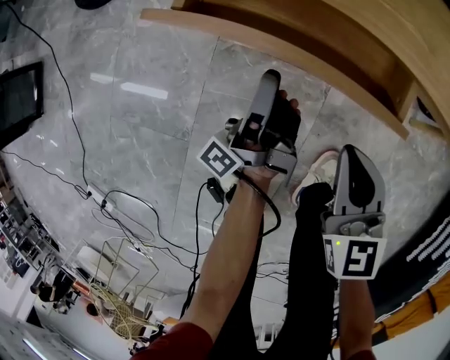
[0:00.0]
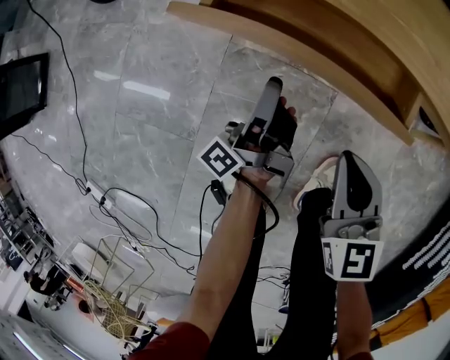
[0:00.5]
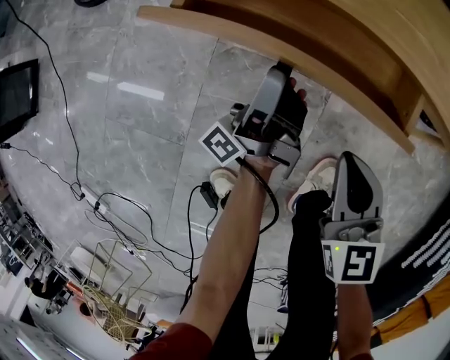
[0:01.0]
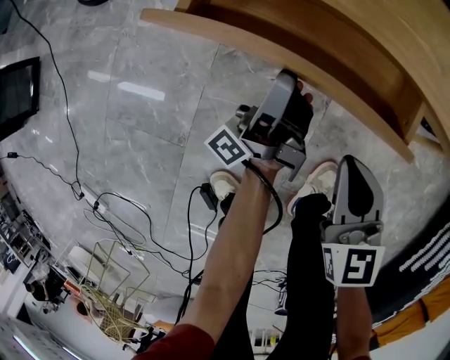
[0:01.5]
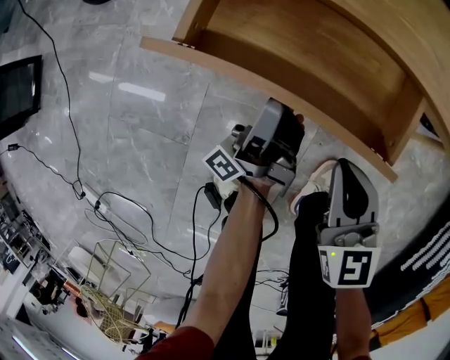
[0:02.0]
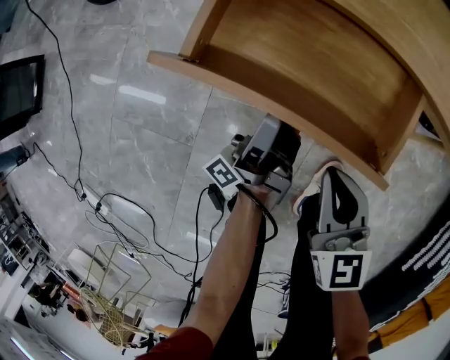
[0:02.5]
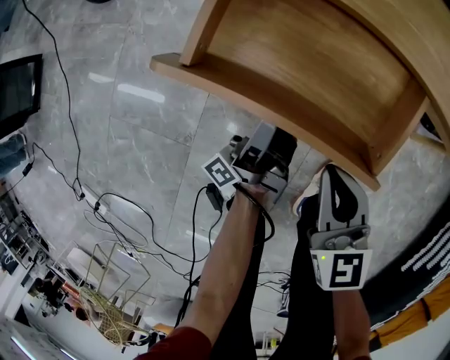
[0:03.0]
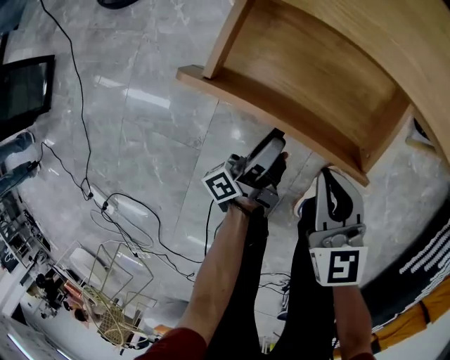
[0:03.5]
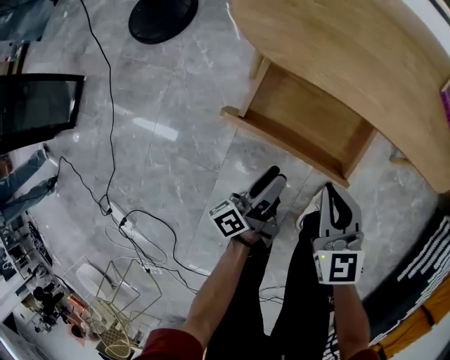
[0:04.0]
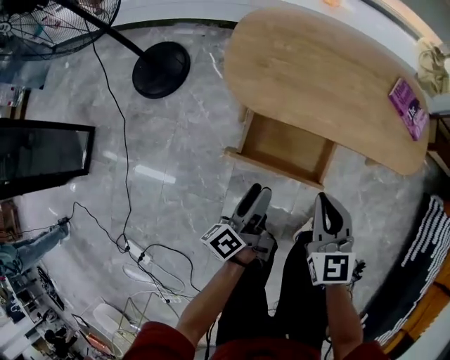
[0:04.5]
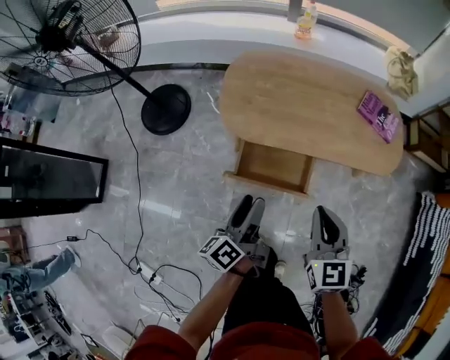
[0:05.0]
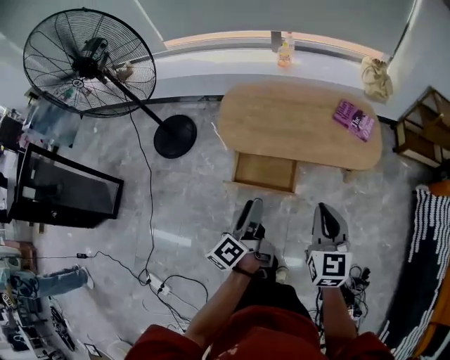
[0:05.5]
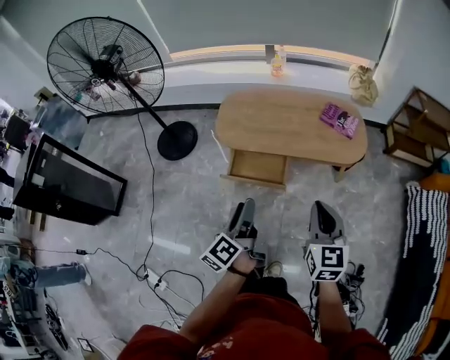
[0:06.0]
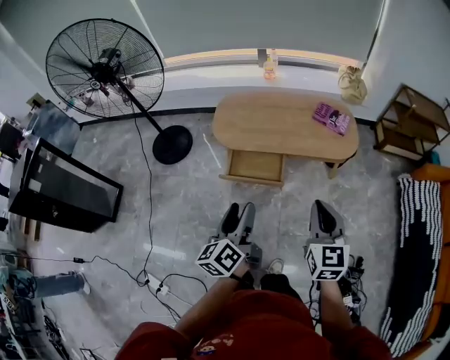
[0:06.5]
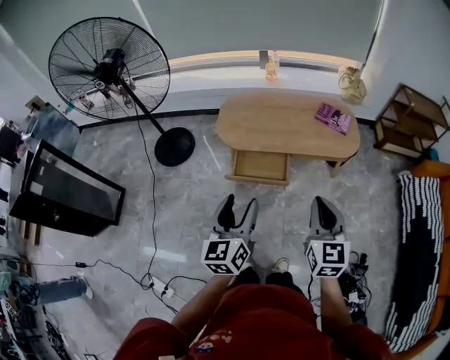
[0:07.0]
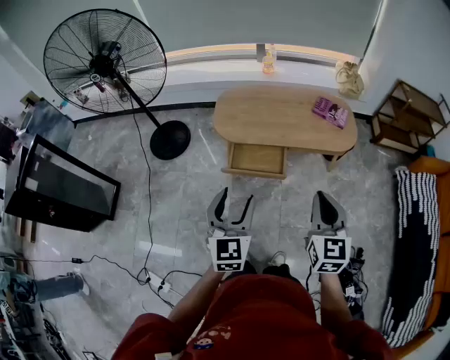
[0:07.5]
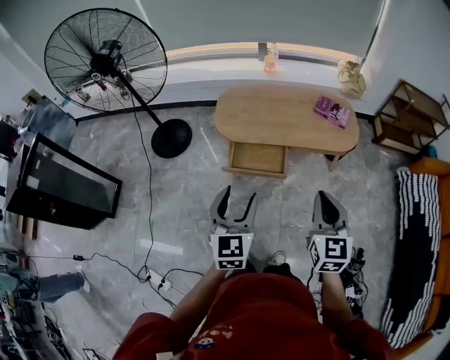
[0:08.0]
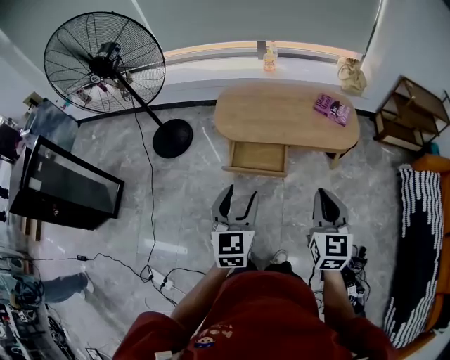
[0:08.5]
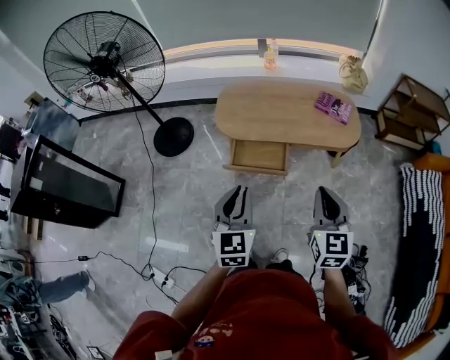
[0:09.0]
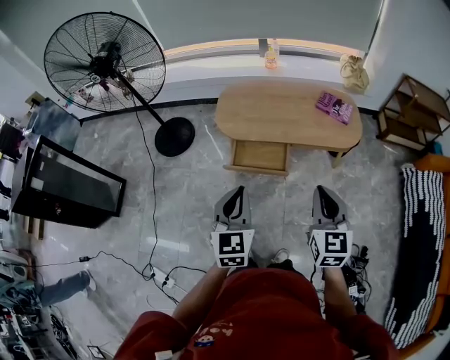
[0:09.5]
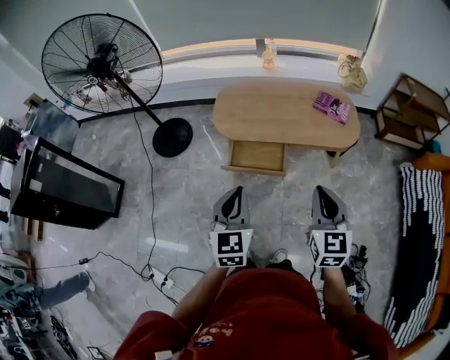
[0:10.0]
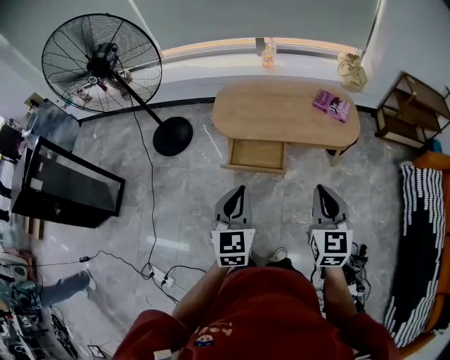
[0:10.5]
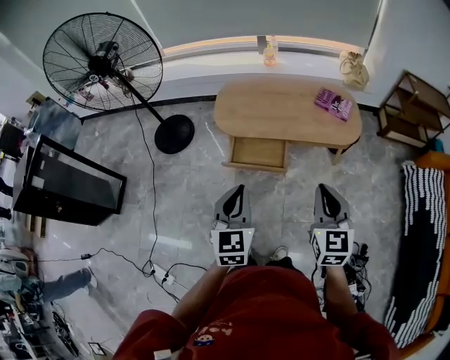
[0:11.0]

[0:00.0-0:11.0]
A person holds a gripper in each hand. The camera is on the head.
0:00.0 to 0:02.0: The left gripper opens its fingers.
0:02.0 to 0:03.5: The left gripper moves backward, approximately 5 cm, and turns by some 20 degrees, while the right gripper ends up some 5 cm from where it was.
0:03.5 to 0:05.5: Both grippers travel together upward, about 60 cm. The right gripper turns by some 30 degrees; the left gripper swivels roughly 30 degrees.
0:05.5 to 0:07.5: Both grippers travel together backward and upward, about 20 cm. The left gripper rotates around the line of its fingers by roughly 80 degrees, clockwise from behind.
0:07.5 to 0:09.0: The left gripper closes its fingers.
0:09.0 to 0:11.0: There are only small adjustments of the grippers.

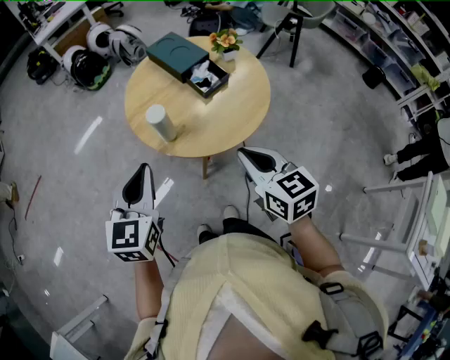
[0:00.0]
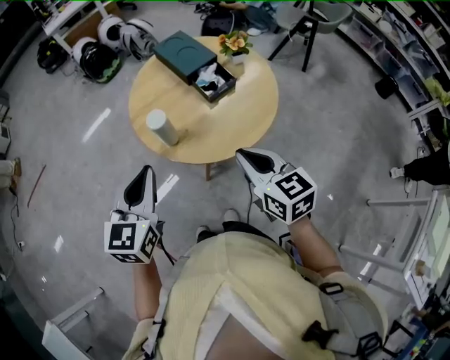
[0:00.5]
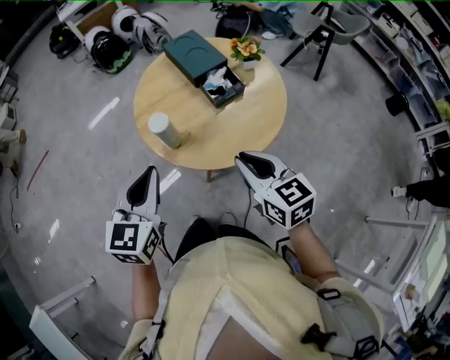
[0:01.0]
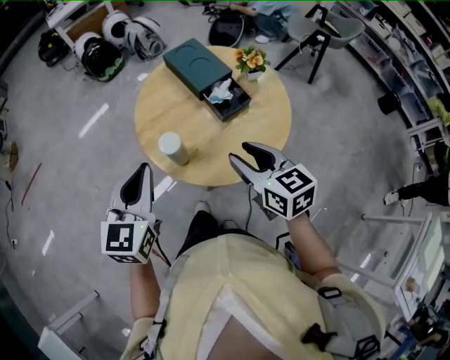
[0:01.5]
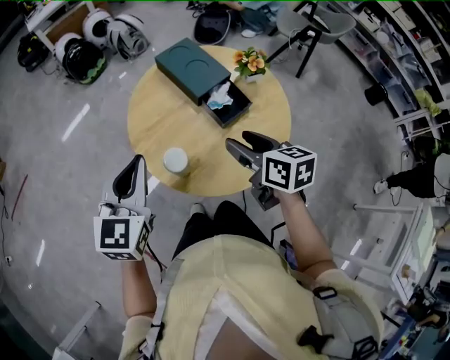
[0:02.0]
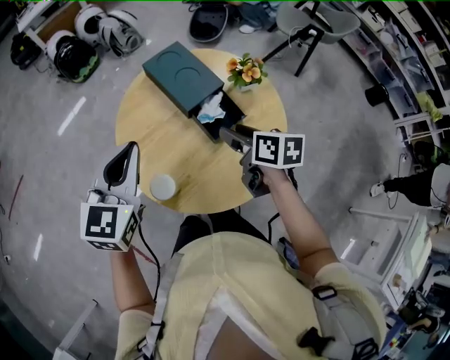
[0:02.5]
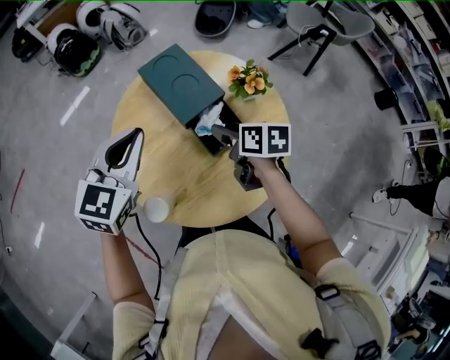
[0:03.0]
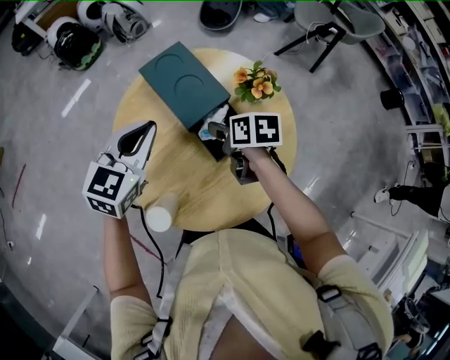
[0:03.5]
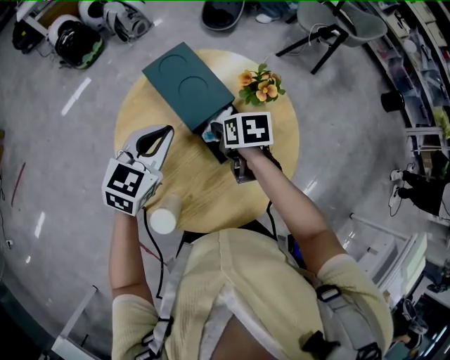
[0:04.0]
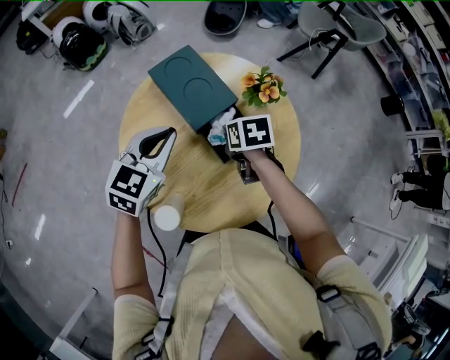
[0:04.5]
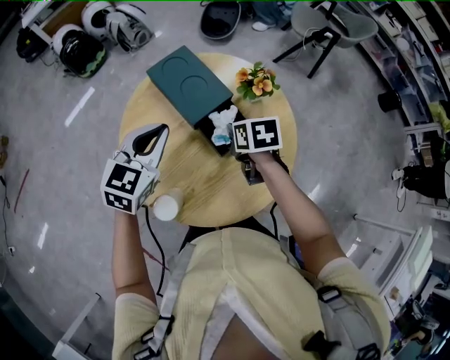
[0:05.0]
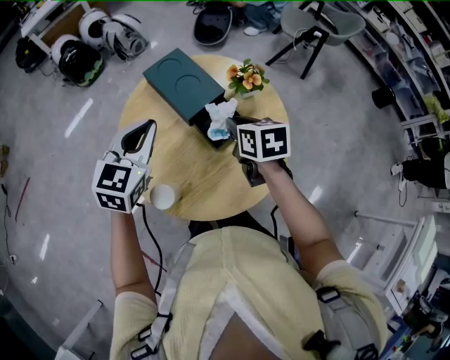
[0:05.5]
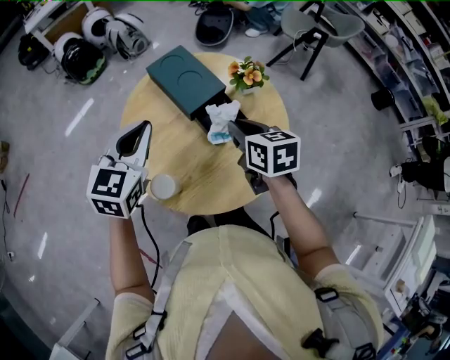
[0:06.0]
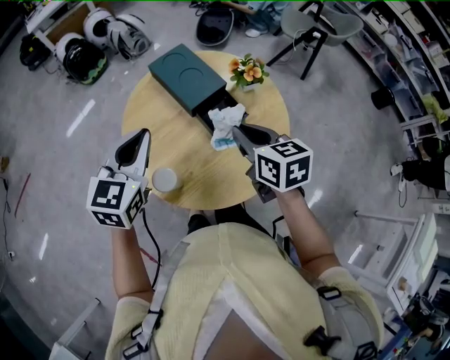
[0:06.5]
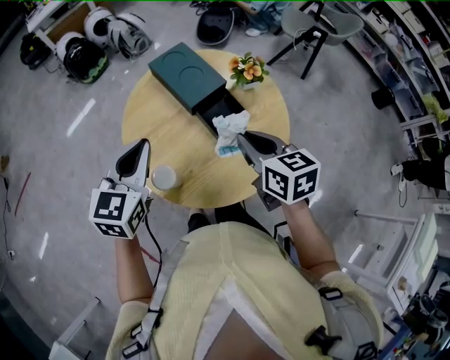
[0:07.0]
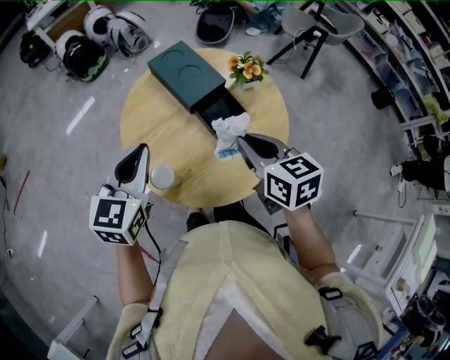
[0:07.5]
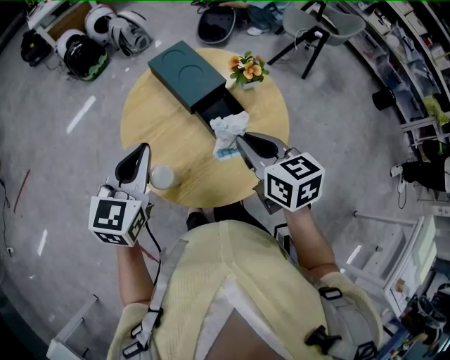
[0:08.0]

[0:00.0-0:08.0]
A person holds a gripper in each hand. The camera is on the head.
0:00.0 to 0:02.0: Both grippers move forward, roughly 20 cm. The right gripper opens up.
0:02.0 to 0:04.0: The left gripper travels forward, to the right and downward by some 25 cm, and swivels about 20 degrees. Meanwhile the right gripper is displaced forward and downward by roughly 25 cm, and rotates some 30 degrees.
0:04.0 to 0:06.0: The right gripper travels upward and backward by roughly 15 cm, swivels roughly 20 degrees, and closes, while the left gripper heads upward, backward and to the left, covering approximately 10 cm.
0:06.0 to 0:08.0: The left gripper is displaced backward by approximately 10 cm. The right gripper travels backward and upward by roughly 10 cm.

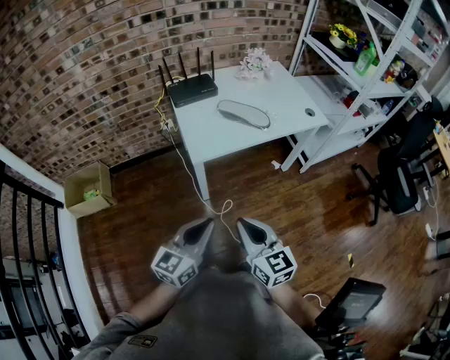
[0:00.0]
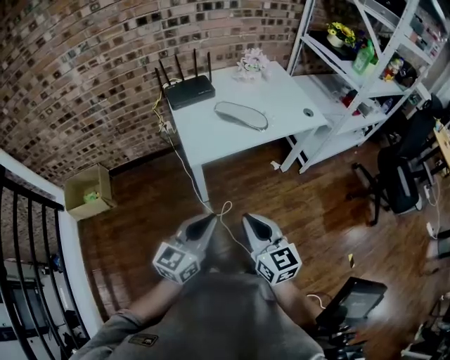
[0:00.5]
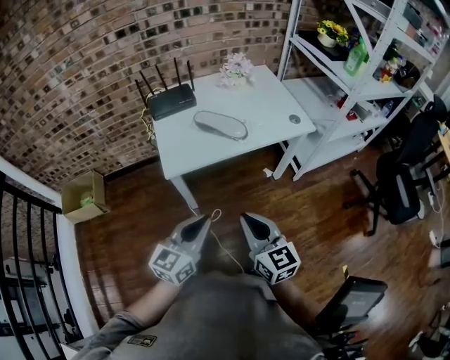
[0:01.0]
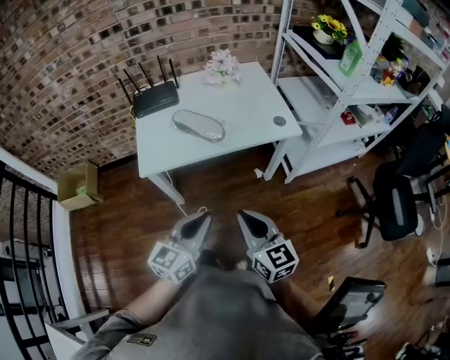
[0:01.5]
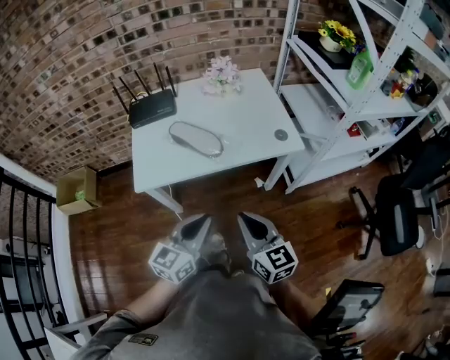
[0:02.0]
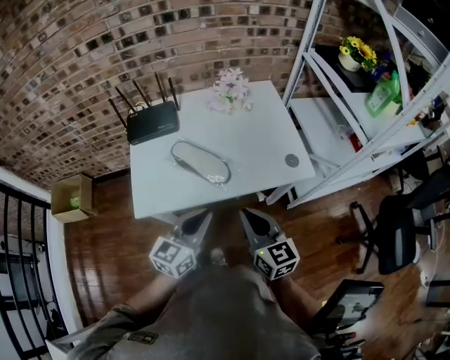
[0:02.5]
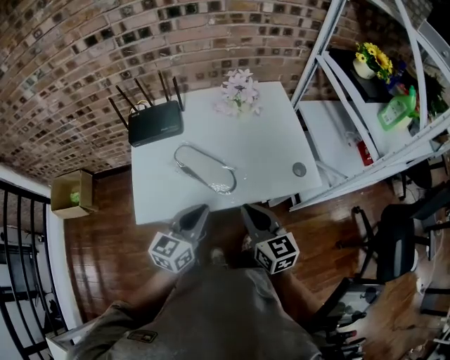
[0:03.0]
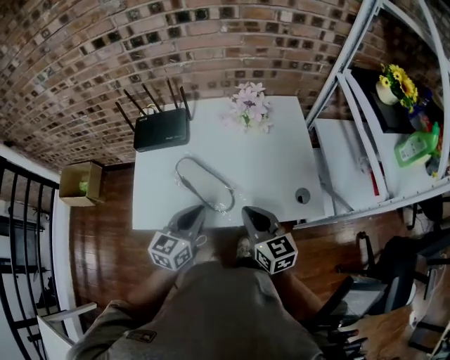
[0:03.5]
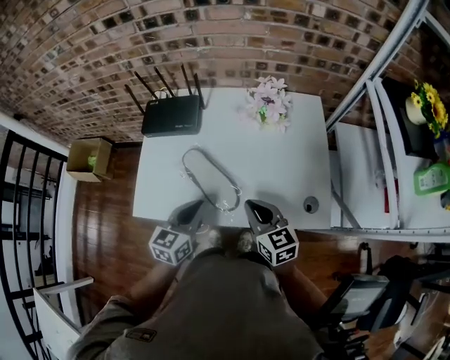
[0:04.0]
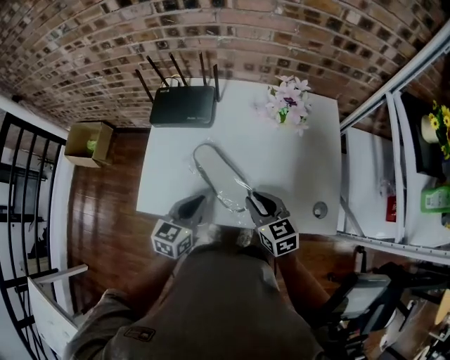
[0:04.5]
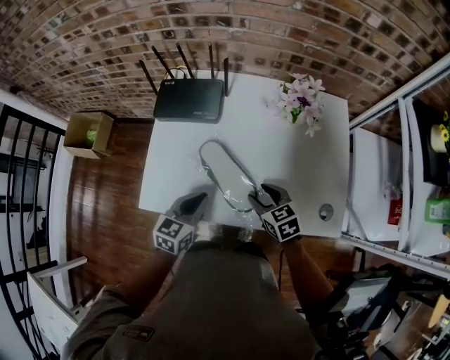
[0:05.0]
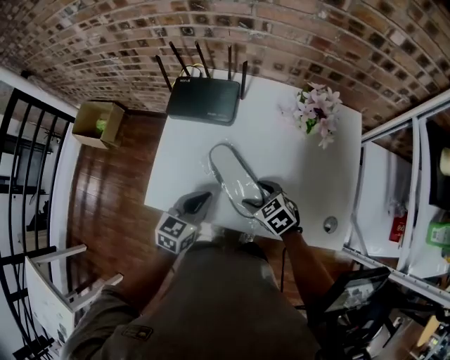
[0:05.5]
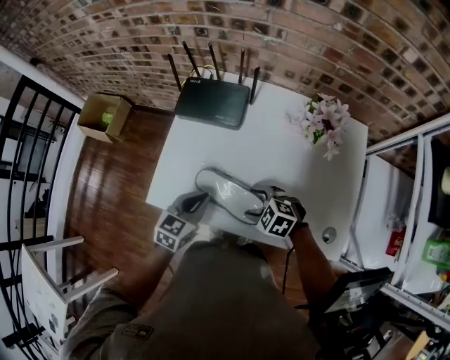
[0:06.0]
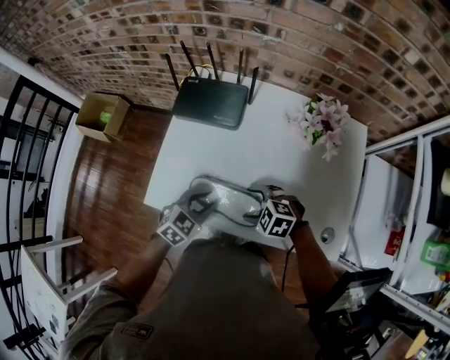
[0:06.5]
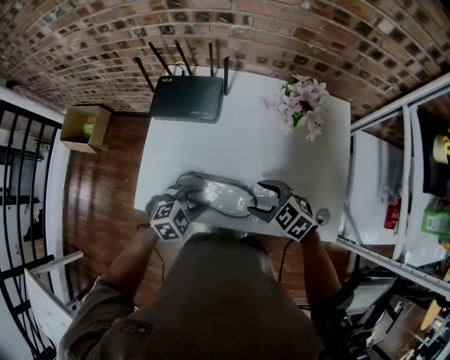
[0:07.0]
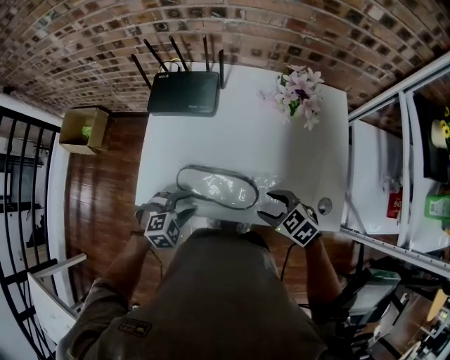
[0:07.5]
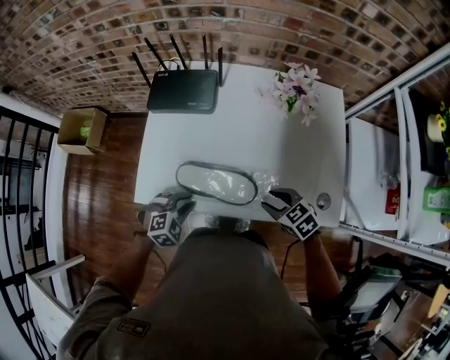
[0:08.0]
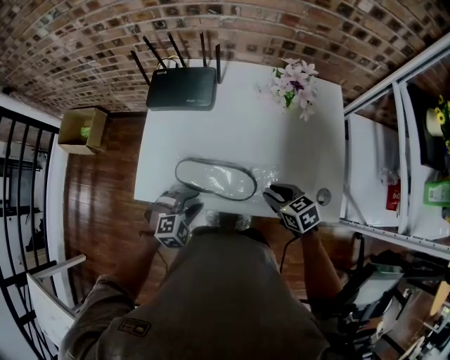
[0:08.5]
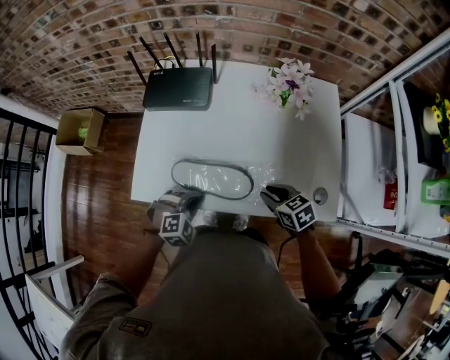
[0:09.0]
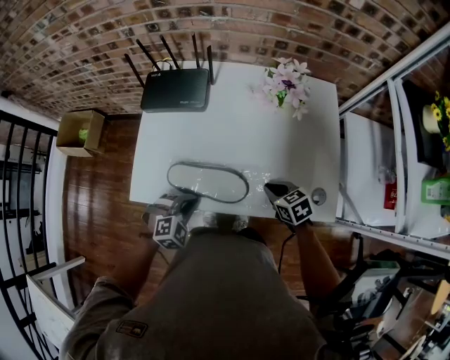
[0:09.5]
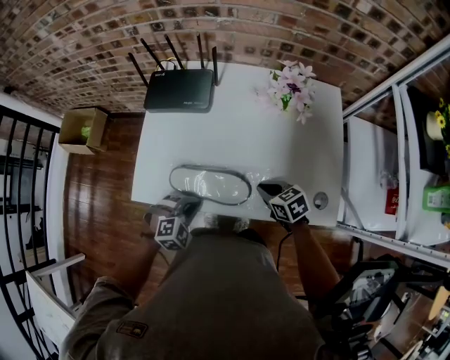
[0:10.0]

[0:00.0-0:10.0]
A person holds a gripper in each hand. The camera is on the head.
0:00.0 to 0:02.0: Both grippers travel together to the right and forward, roughly 30 cm.
0:02.0 to 0:04.0: The two grippers go roughly 30 cm forward. The left gripper turns by roughly 20 degrees, while the right gripper changes its angle by some 20 degrees.
0:04.0 to 0:06.0: The right gripper goes about 10 cm downward, tips its fingers downward by approximately 30 degrees, and opens. The left gripper changes place by approximately 10 cm.
0:06.0 to 0:08.0: The left gripper goes about 5 cm downward, twists some 50 degrees clockwise, seen from behind, and opens. The right gripper changes place by roughly 10 cm, changes its angle by roughly 40 degrees, and closes its fingers.
0:08.0 to 0:10.0: The left gripper closes up. The right gripper closes.
